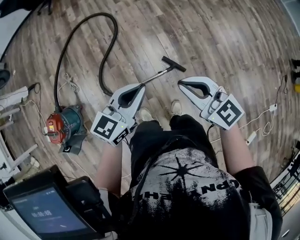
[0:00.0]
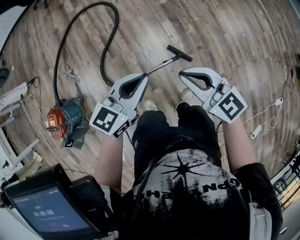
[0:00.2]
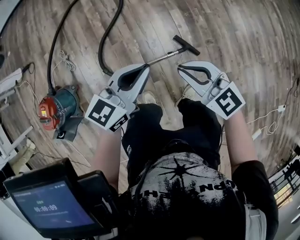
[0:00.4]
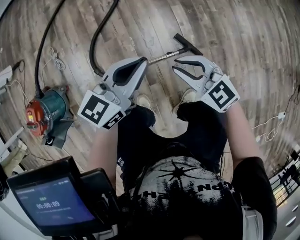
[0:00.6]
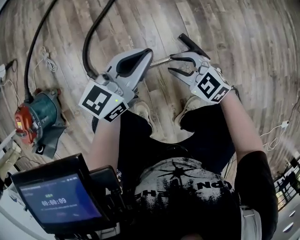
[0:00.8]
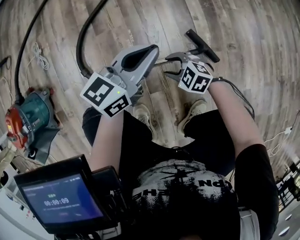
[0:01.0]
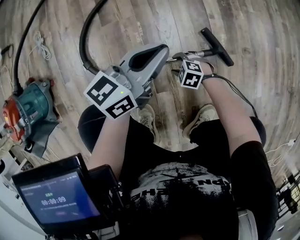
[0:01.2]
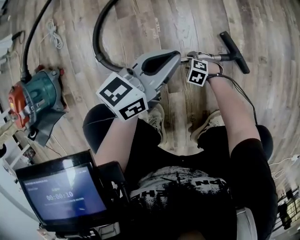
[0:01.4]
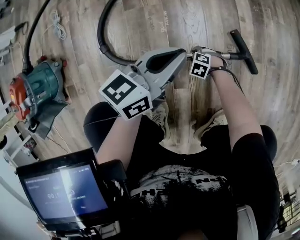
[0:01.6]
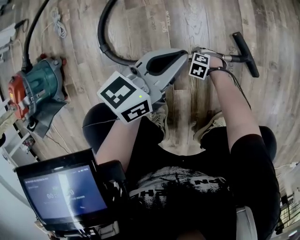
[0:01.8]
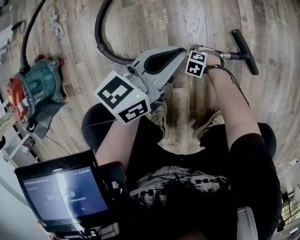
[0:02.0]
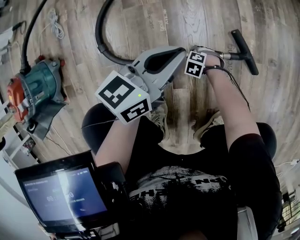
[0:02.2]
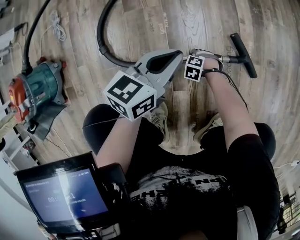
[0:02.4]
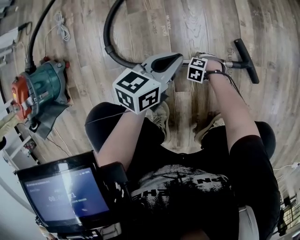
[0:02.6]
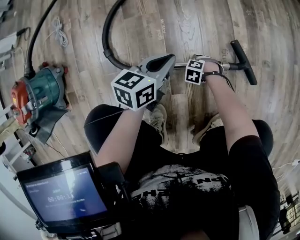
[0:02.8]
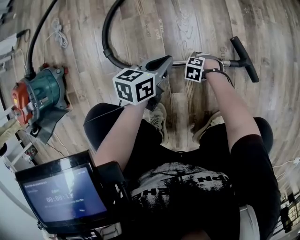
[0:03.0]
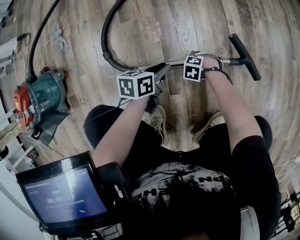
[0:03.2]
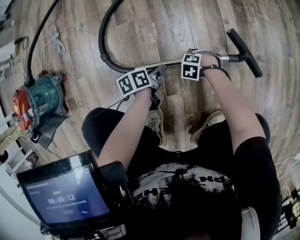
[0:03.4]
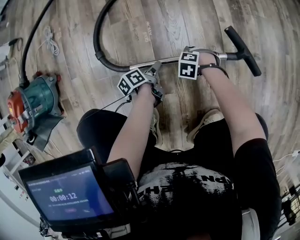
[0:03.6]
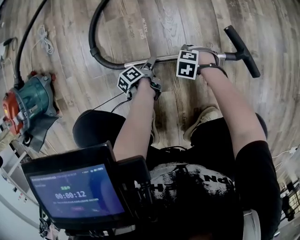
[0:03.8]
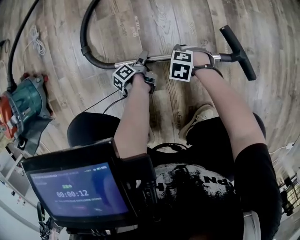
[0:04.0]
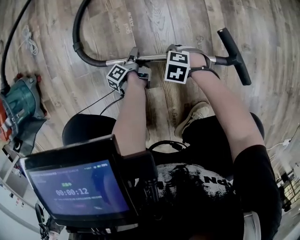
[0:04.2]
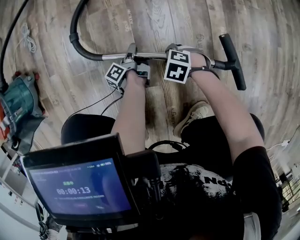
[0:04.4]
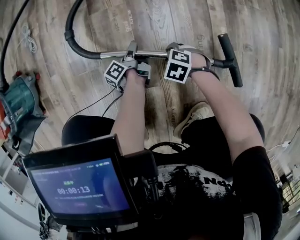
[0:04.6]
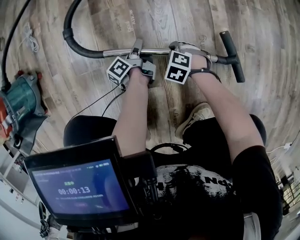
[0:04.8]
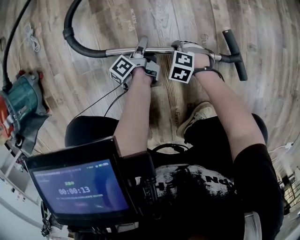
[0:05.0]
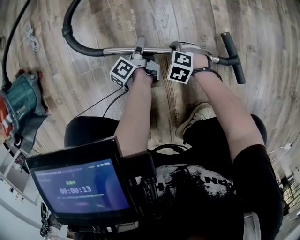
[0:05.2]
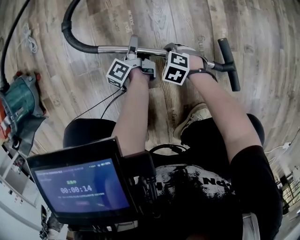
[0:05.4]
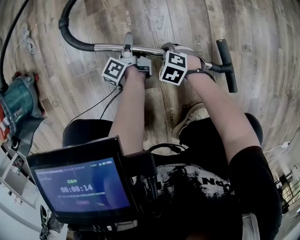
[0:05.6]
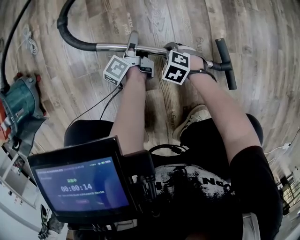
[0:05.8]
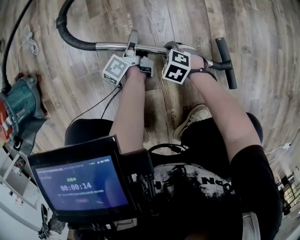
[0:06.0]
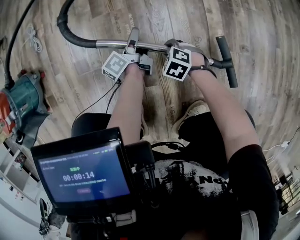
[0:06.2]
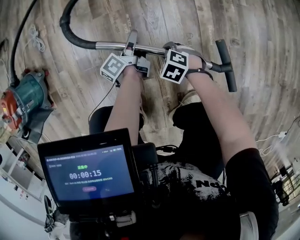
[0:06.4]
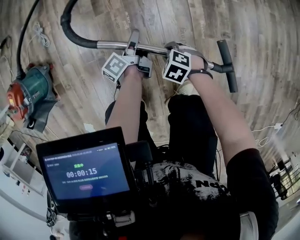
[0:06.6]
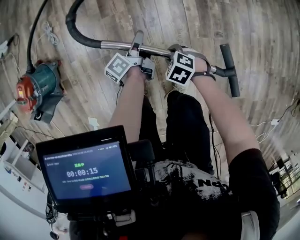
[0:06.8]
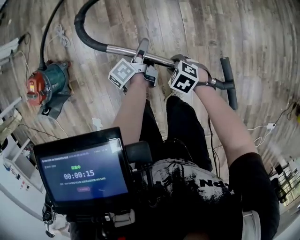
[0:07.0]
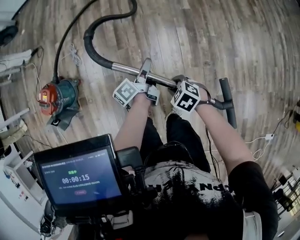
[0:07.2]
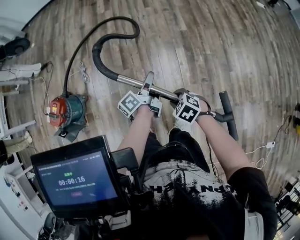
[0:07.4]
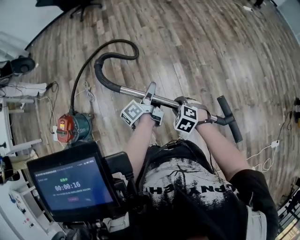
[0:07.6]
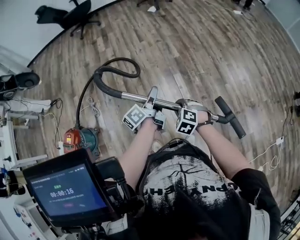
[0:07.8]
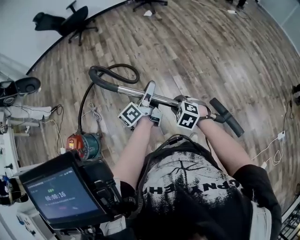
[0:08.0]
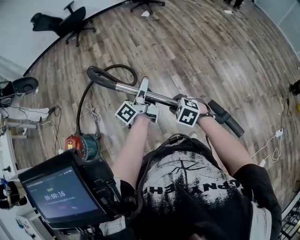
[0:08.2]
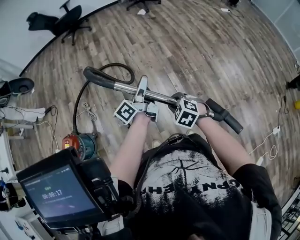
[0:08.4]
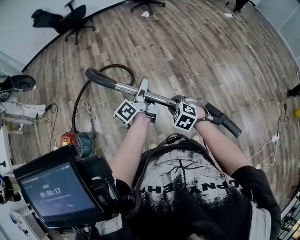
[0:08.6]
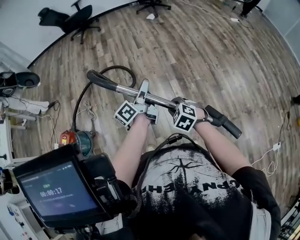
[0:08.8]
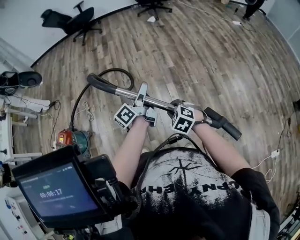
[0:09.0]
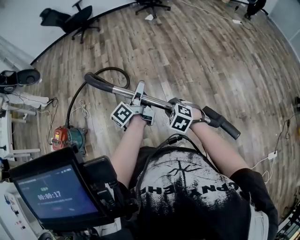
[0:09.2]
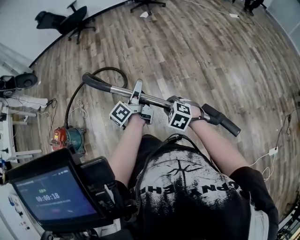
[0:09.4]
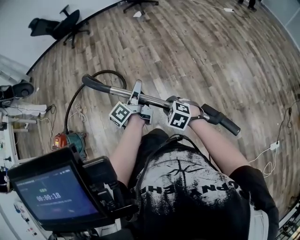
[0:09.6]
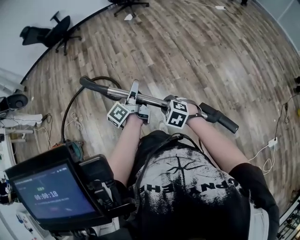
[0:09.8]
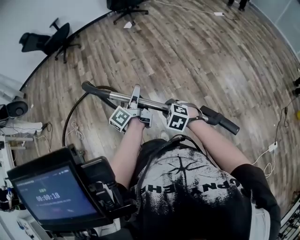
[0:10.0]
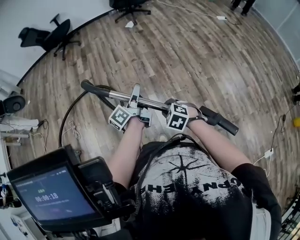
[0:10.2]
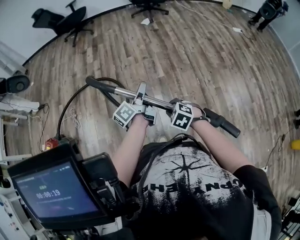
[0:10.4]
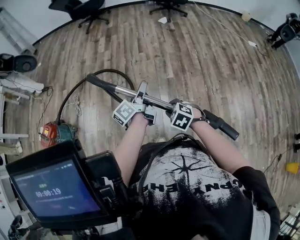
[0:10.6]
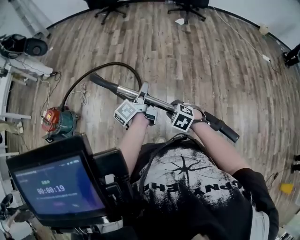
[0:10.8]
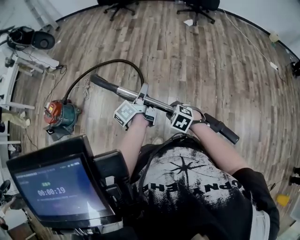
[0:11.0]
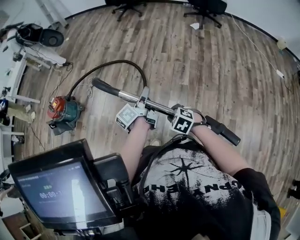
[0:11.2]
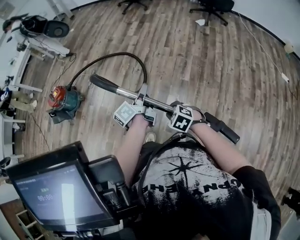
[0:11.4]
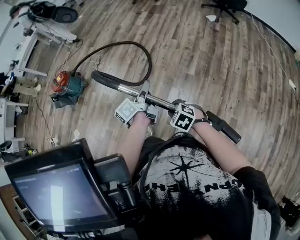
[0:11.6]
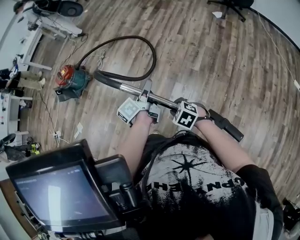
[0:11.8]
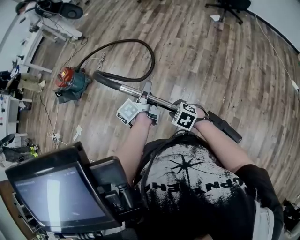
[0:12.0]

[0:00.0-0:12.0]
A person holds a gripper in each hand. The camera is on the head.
0:00.0 to 0:01.6: The right gripper moves downward, about 90 cm, points its fingers approximately 60 degrees further downward, and opens its fingers. The left gripper heads downward, covering roughly 50 cm, and changes its angle by roughly 20 degrees.
0:01.6 to 0:03.0: The left gripper shifts some 10 cm downward, and turns by about 20 degrees.
0:03.0 to 0:04.4: The left gripper is displaced downward by approximately 20 cm, rolls counterclockwise, seen from behind, by roughly 70 degrees, and opens up, while the right gripper moves upward, some 5 cm.
0:04.4 to 0:06.0: The left gripper is displaced upward by approximately 10 cm, and turns by roughly 30 degrees.
0:06.0 to 0:07.6: The two grippers go approximately 70 cm upward.
0:07.6 to 0:09.0: The left gripper heads upward and to the right, covering about 15 cm; the right gripper shifts about 10 cm upward and to the right.
0:09.0 to 0:10.4: The left gripper is displaced forward and to the right by roughly 20 cm, while the right gripper travels to the right and forward by approximately 20 cm.
0:10.4 to 0:12.0: The left gripper ends up some 10 cm from where it was, and rotates approximately 30 degrees. Meanwhile the right gripper shifts by some 10 cm, and swivels about 40 degrees.

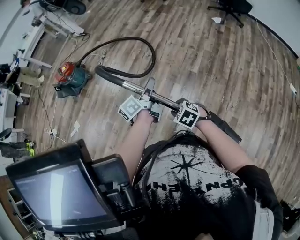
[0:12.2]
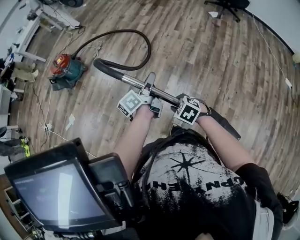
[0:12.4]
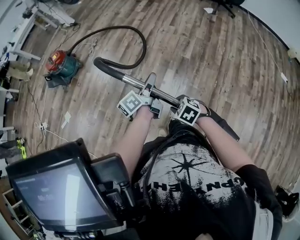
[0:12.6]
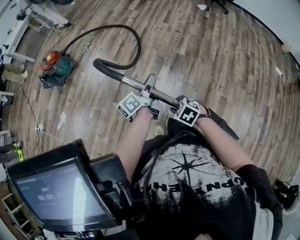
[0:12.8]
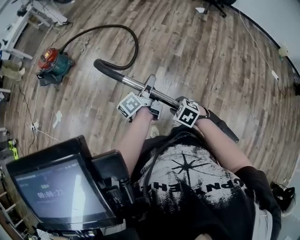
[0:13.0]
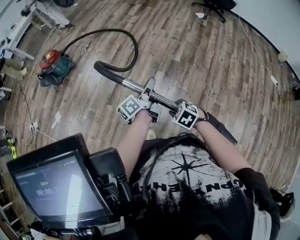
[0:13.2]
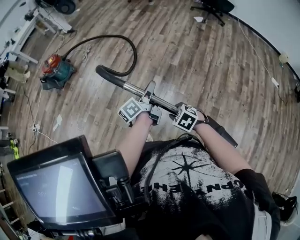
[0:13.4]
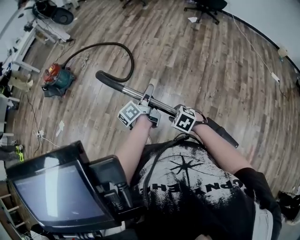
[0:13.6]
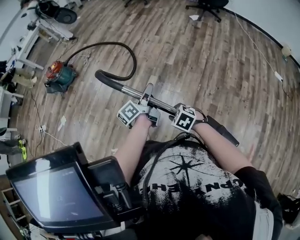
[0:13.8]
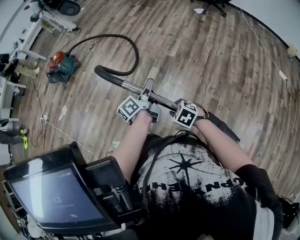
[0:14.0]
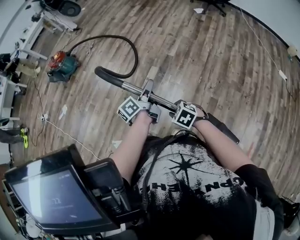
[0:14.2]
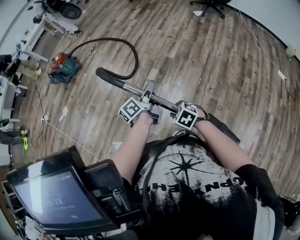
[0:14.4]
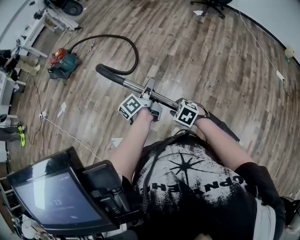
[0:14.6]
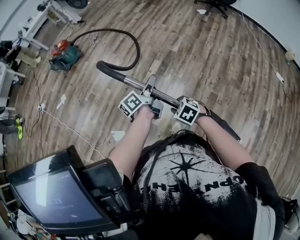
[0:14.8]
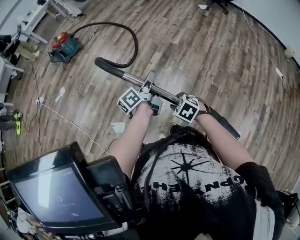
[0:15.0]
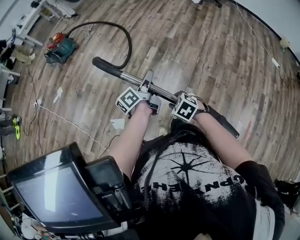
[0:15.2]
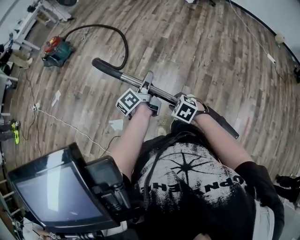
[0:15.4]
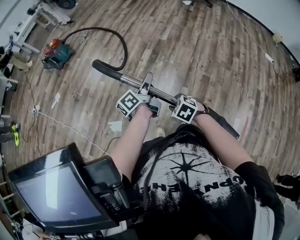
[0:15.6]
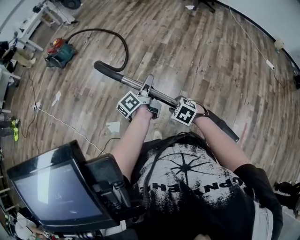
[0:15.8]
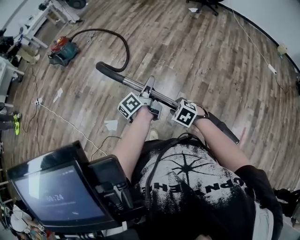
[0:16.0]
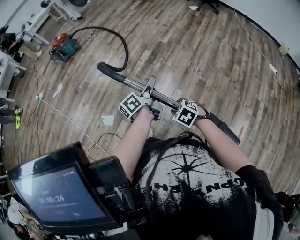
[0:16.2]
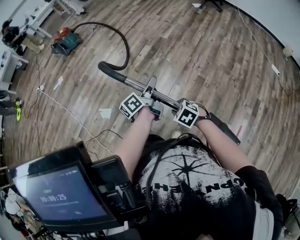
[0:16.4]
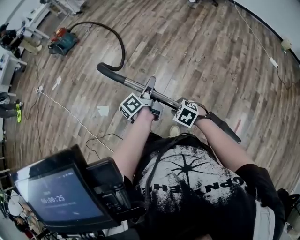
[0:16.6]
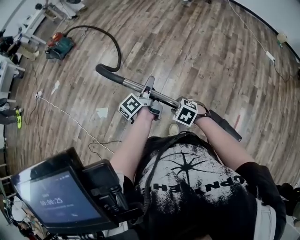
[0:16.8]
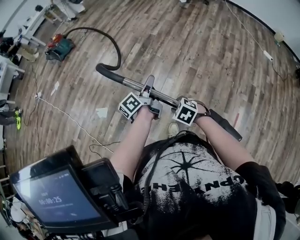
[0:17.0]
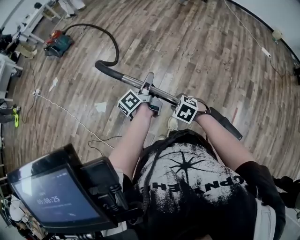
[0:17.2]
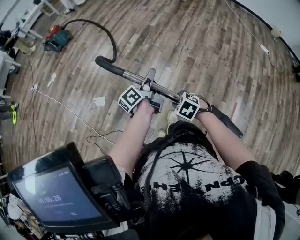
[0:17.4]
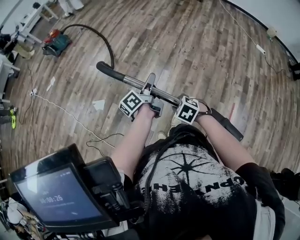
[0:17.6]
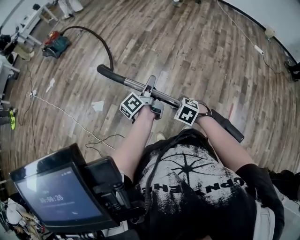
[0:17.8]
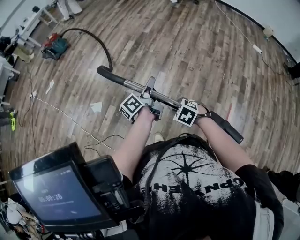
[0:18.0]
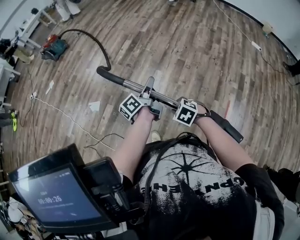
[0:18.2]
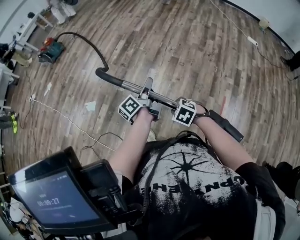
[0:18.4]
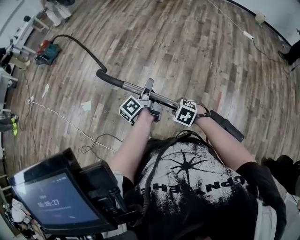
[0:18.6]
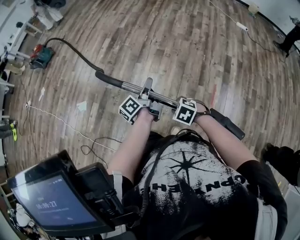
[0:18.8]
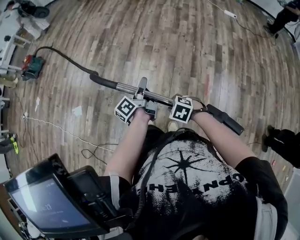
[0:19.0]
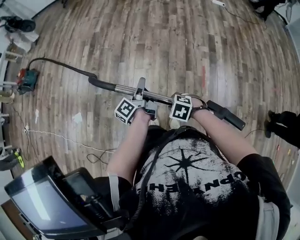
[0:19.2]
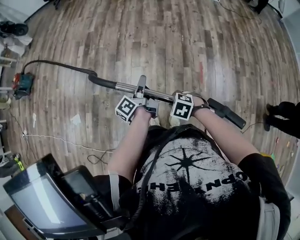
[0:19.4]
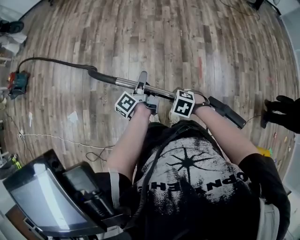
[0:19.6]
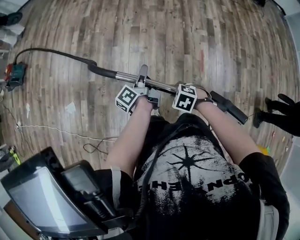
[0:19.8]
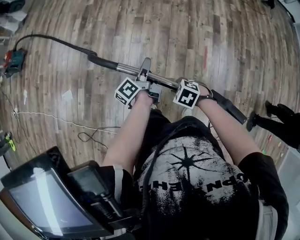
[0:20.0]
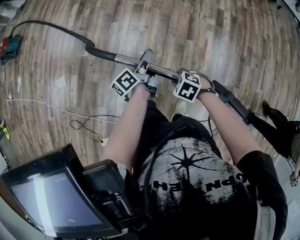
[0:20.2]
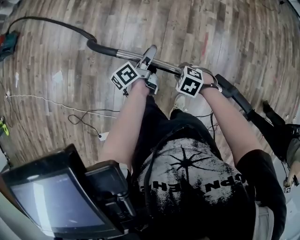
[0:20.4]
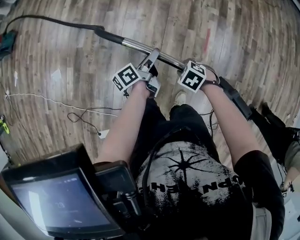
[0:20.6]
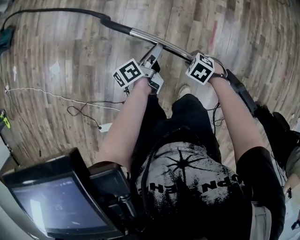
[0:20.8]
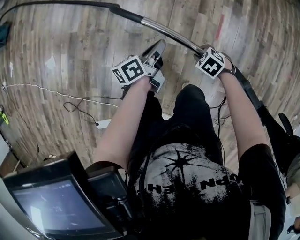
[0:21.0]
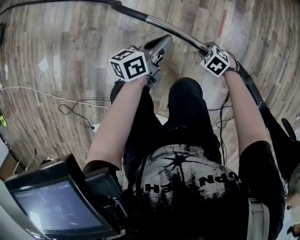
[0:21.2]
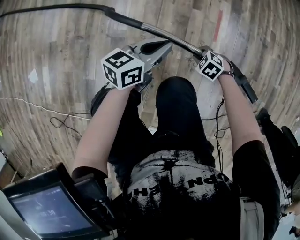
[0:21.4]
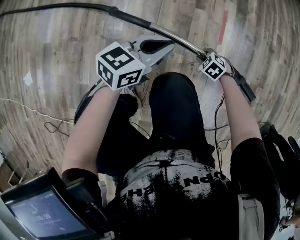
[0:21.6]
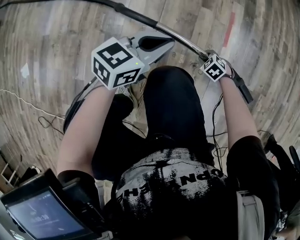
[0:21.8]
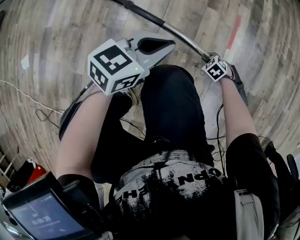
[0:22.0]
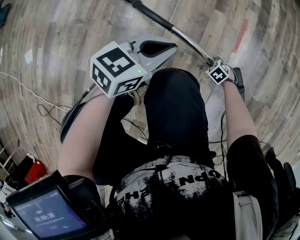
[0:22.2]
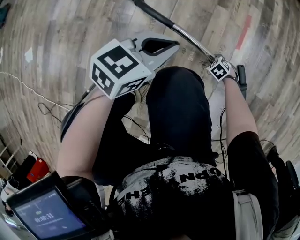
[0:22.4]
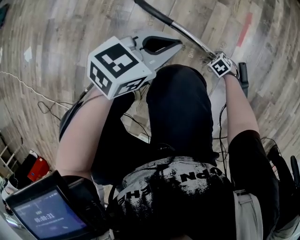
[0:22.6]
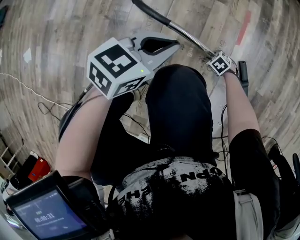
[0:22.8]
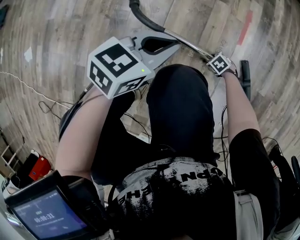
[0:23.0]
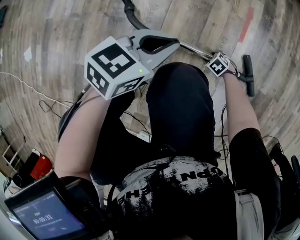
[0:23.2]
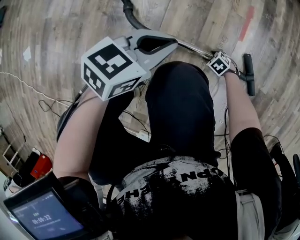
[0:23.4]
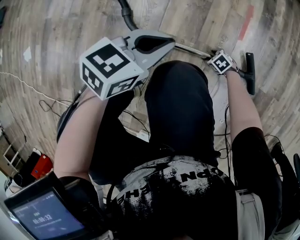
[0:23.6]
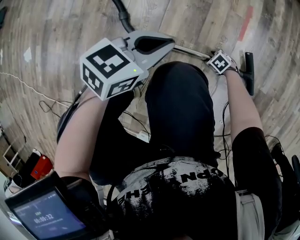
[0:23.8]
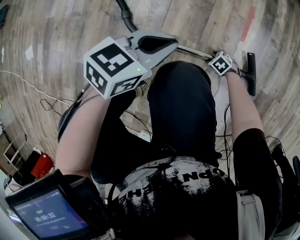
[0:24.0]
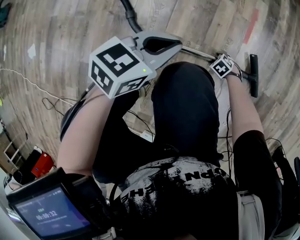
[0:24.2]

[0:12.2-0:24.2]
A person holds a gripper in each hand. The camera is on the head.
0:12.2 to 0:13.8: Both grippers travel together backward and to the right, roughly 30 cm.
0:13.8 to 0:15.2: The grippers both shift backward and to the left by approximately 25 cm.
0:15.2 to 0:16.6: Both grippers travel together backward and to the right, roughly 30 cm.
0:16.6 to 0:18.2: The grippers both shift backward by roughly 20 cm.
0:18.2 to 0:19.8: Both grippers travel together to the right, backward and downward, about 25 cm.
0:19.8 to 0:21.2: Both grippers move downward, some 30 cm. The left gripper changes its angle by some 40 degrees, and opens and closes again.
0:21.2 to 0:22.6: The right gripper moves downward, approximately 40 cm. The left gripper goes some 15 cm downward, and turns by approximately 50 degrees.
0:22.6 to 0:24.2: The right gripper opens up.
